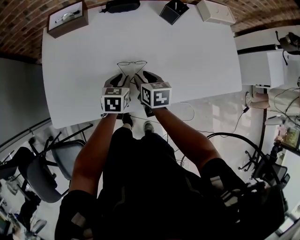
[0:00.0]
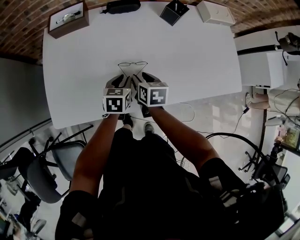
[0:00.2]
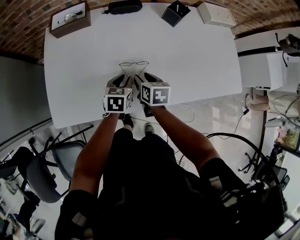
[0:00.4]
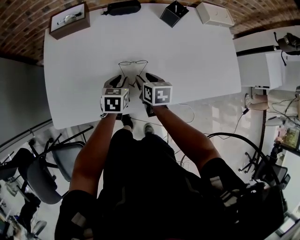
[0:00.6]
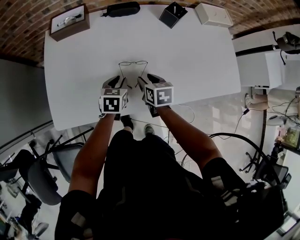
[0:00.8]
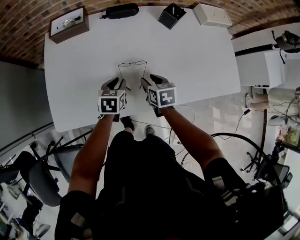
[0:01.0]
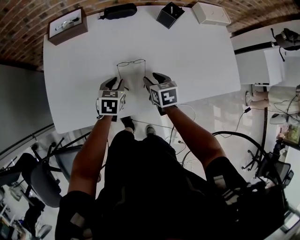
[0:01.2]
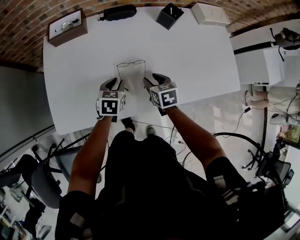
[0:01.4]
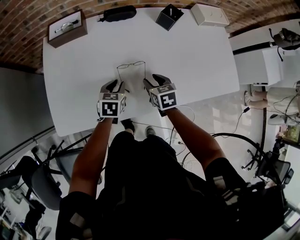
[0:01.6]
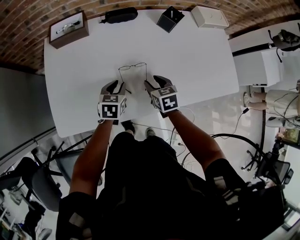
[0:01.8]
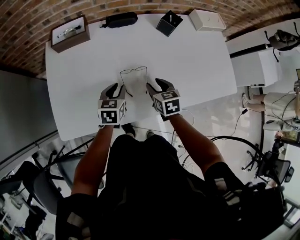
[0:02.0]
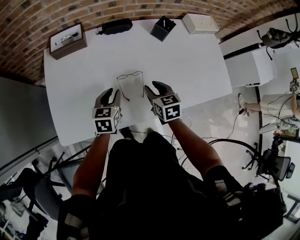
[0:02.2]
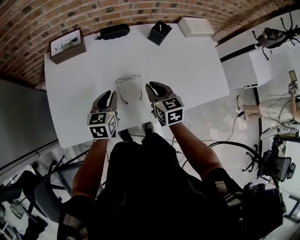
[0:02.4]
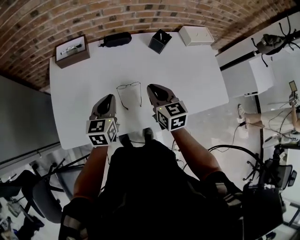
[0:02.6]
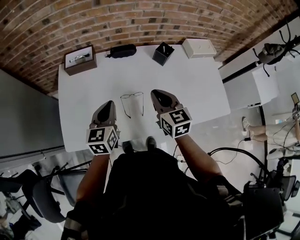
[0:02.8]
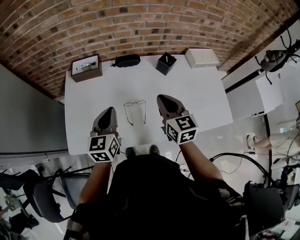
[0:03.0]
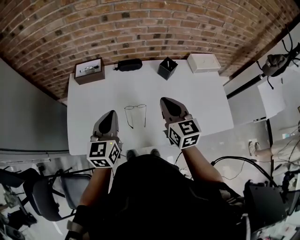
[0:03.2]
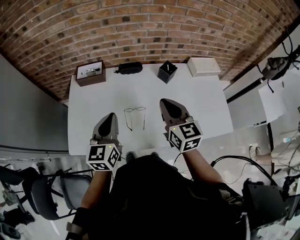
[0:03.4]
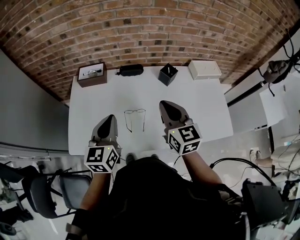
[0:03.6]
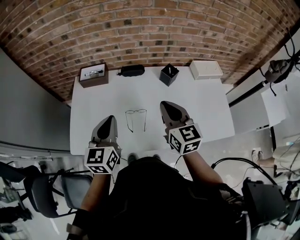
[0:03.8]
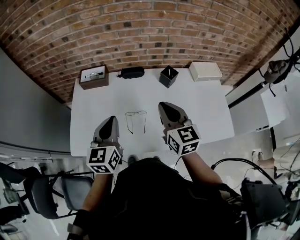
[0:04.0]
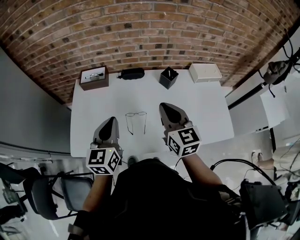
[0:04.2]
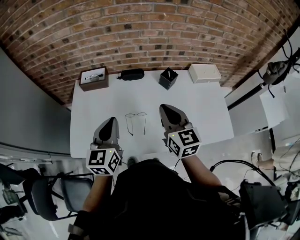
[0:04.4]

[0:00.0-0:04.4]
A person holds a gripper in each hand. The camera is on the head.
0:00.0 to 0:01.4: The grippers stay close to where they were, moving slightly.
0:01.4 to 0:03.0: The grippers both shift upward by about 25 cm. The right gripper angles its fingers upward, by about 30 degrees, and closes its fingers, while the left gripper tips its fingers upward by some 30 degrees, and closes its fingers.
0:03.0 to 0:04.4: Both grippers move upward, roughly 5 cm.

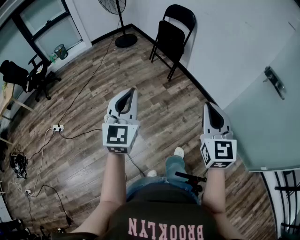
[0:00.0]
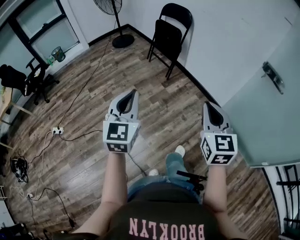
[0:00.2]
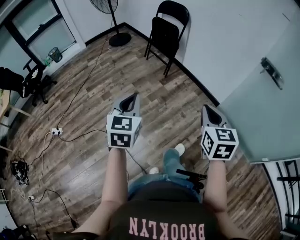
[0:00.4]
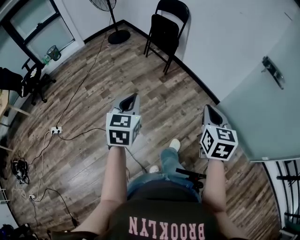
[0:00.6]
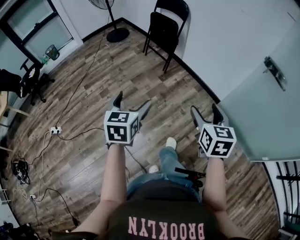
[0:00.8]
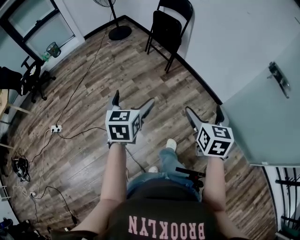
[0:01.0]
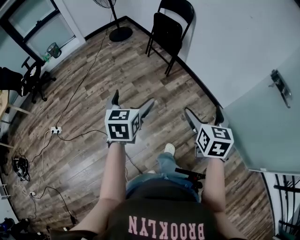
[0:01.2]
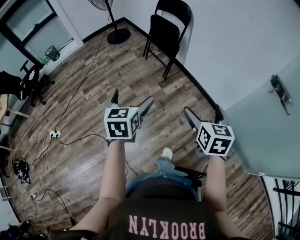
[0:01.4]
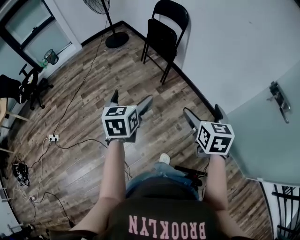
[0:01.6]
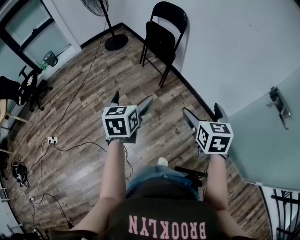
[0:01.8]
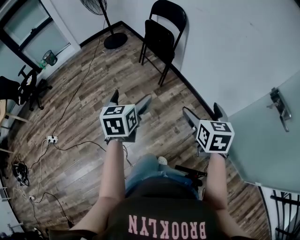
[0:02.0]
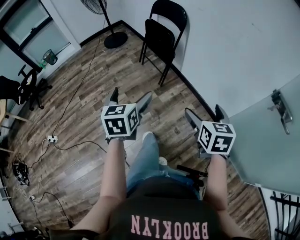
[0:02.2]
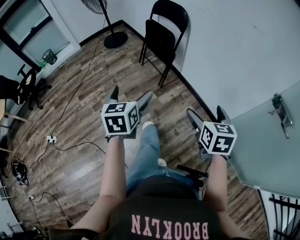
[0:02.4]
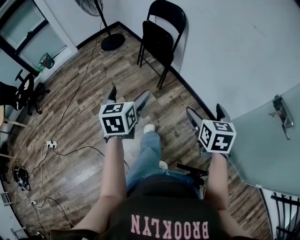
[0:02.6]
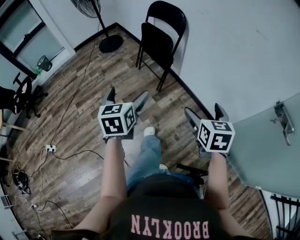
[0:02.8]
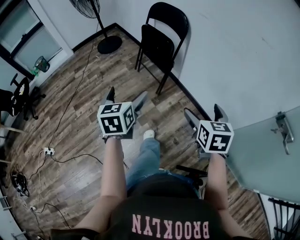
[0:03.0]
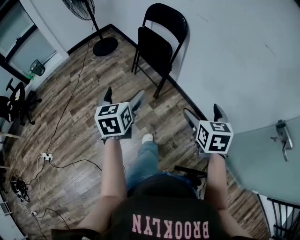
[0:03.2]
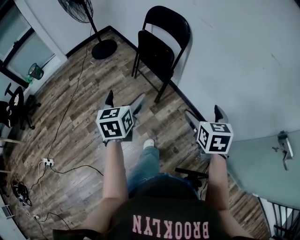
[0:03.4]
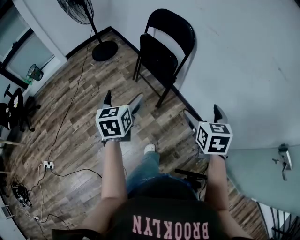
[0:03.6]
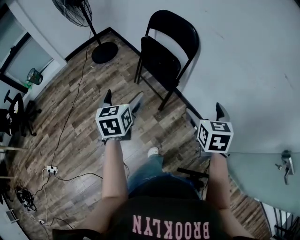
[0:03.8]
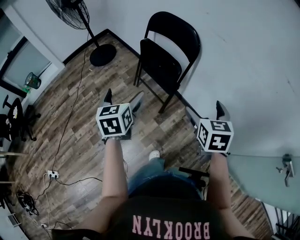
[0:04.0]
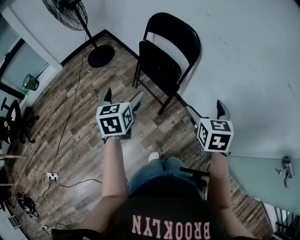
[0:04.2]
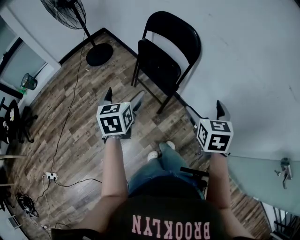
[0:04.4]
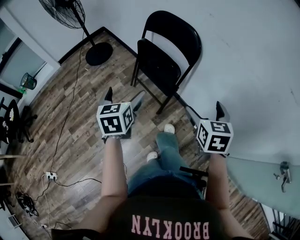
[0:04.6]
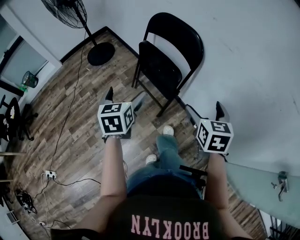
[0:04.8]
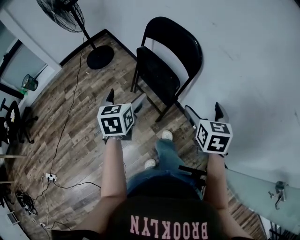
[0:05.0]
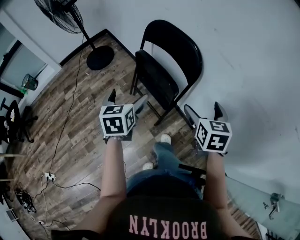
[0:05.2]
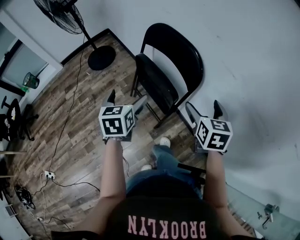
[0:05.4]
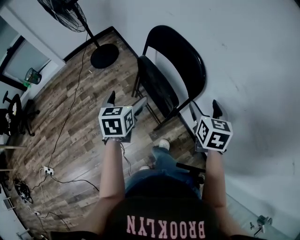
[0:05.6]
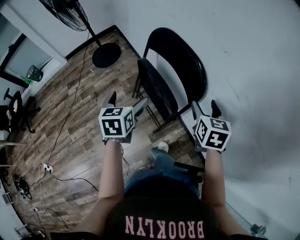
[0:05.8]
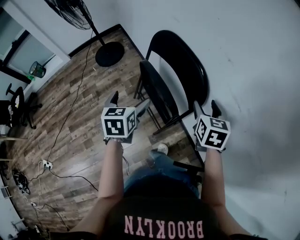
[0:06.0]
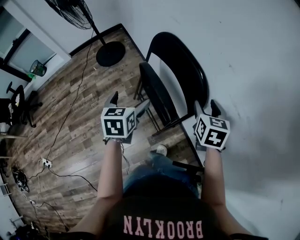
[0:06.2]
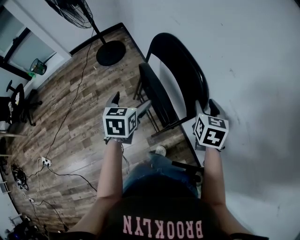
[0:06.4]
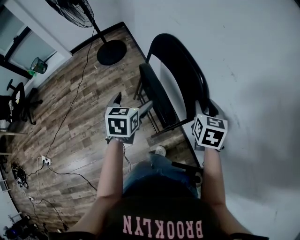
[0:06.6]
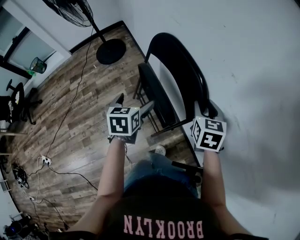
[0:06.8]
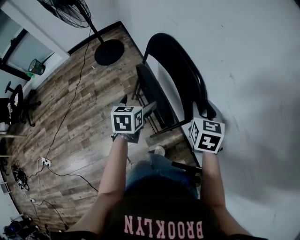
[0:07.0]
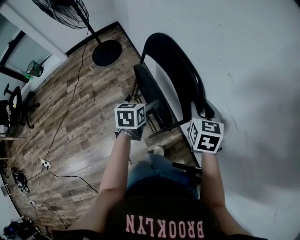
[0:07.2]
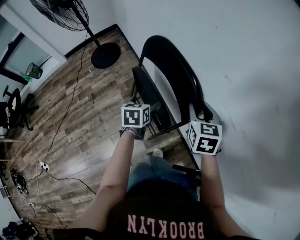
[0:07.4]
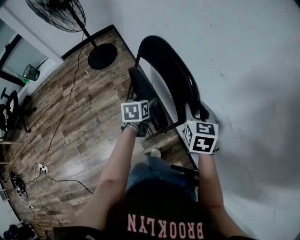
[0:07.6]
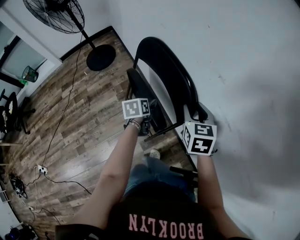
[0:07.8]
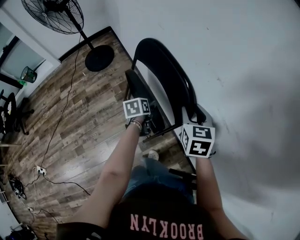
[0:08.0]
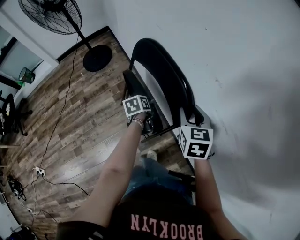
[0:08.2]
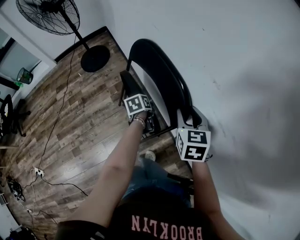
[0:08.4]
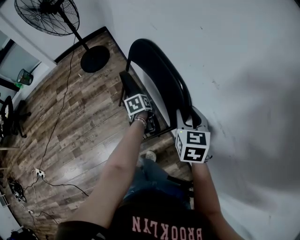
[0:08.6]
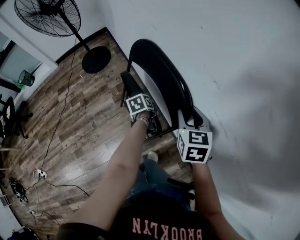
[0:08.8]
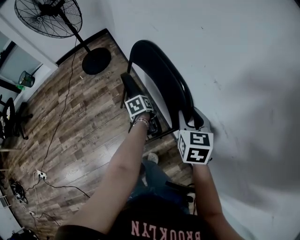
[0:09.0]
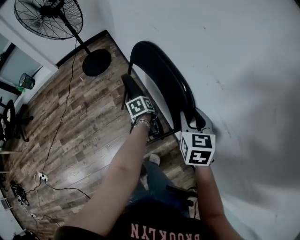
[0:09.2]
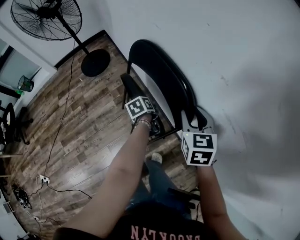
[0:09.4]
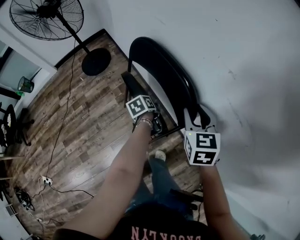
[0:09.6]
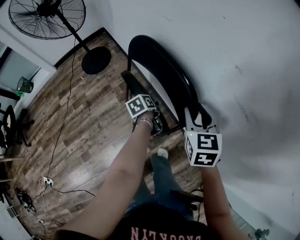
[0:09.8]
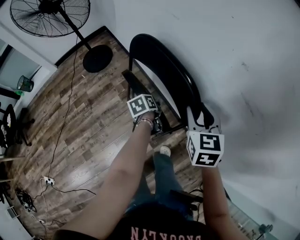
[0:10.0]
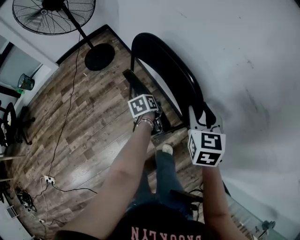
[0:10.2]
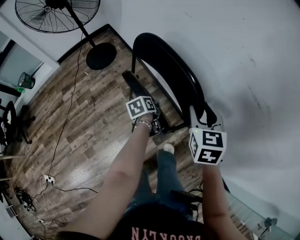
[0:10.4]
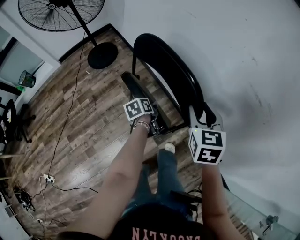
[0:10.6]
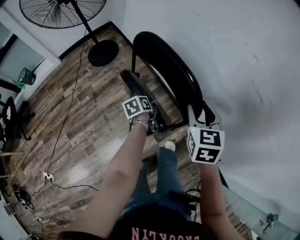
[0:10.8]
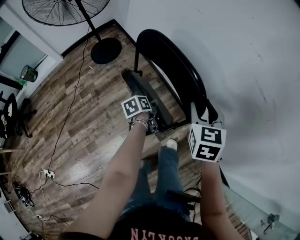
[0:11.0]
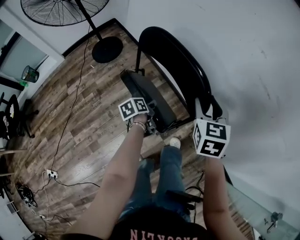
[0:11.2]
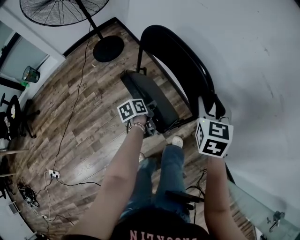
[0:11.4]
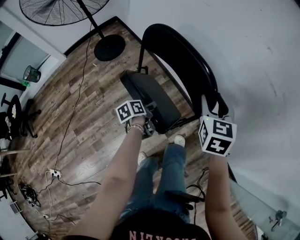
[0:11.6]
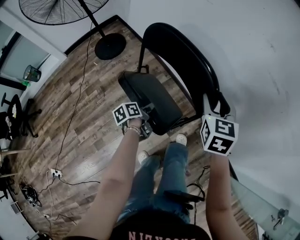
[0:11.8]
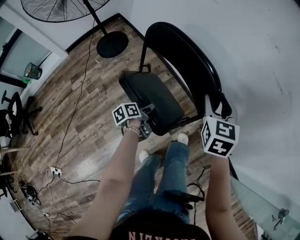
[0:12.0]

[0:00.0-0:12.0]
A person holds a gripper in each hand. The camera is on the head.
0:00.0 to 0:01.6: The right gripper goes roughly 25 cm forward and downward, turns by roughly 30 degrees, and opens its fingers, while the left gripper goes approximately 25 cm forward, swivels about 30 degrees, and opens.
0:01.6 to 0:03.0: Both grippers move forward, some 20 cm.
0:03.0 to 0:04.4: Both grippers travel together forward, some 30 cm.
0:04.4 to 0:06.0: The grippers both shift forward by approximately 30 cm. The right gripper closes up.
0:06.0 to 0:07.6: The right gripper moves forward, approximately 5 cm; the left gripper goes roughly 20 cm downward, forward and to the right, and closes up.
0:07.6 to 0:09.0: The left gripper is displaced downward by approximately 10 cm, swivels approximately 30 degrees, and closes.
0:09.0 to 0:10.4: Both grippers move backward and to the left, some 15 cm.
0:10.4 to 0:12.0: The left gripper heads backward and to the left, covering roughly 15 cm. The right gripper moves about 5 cm.

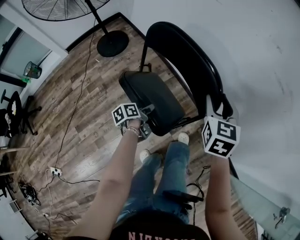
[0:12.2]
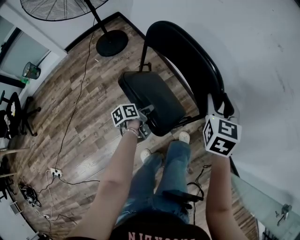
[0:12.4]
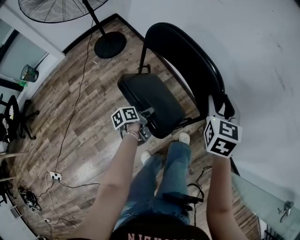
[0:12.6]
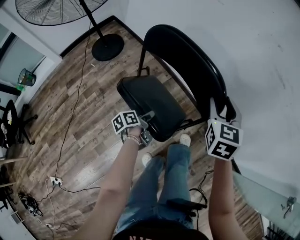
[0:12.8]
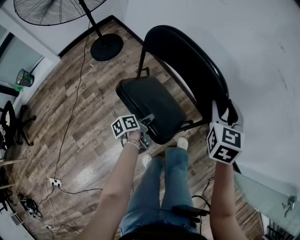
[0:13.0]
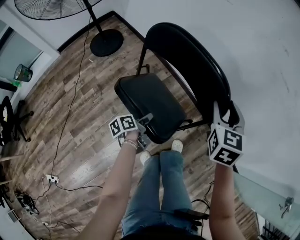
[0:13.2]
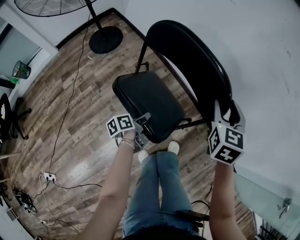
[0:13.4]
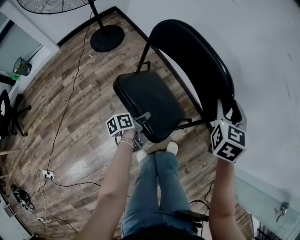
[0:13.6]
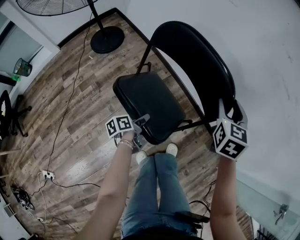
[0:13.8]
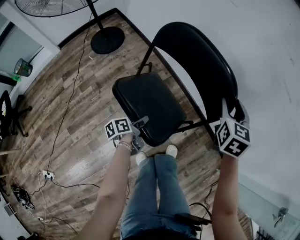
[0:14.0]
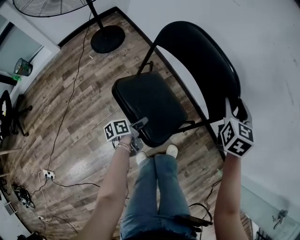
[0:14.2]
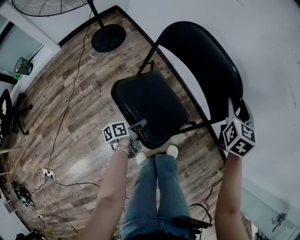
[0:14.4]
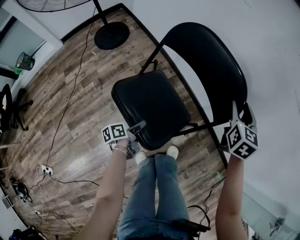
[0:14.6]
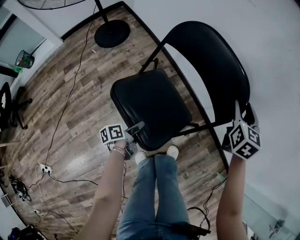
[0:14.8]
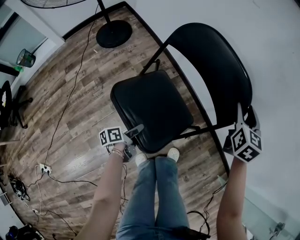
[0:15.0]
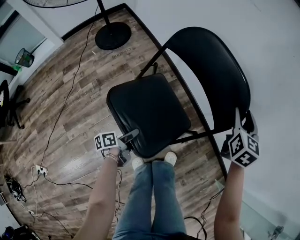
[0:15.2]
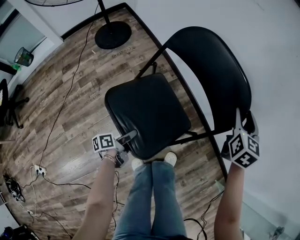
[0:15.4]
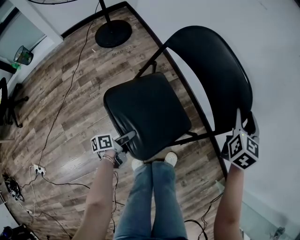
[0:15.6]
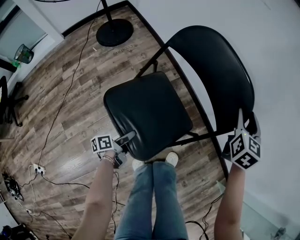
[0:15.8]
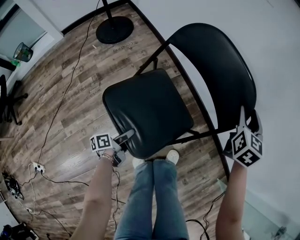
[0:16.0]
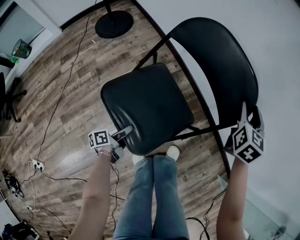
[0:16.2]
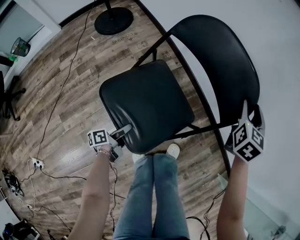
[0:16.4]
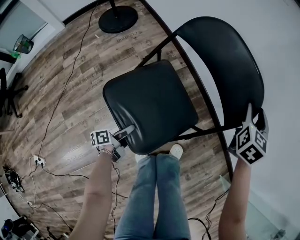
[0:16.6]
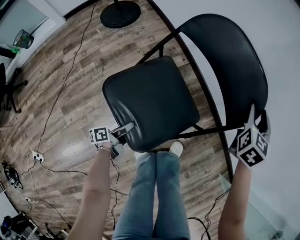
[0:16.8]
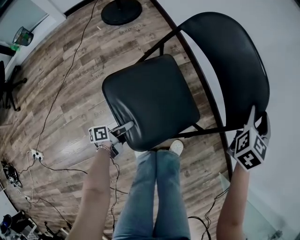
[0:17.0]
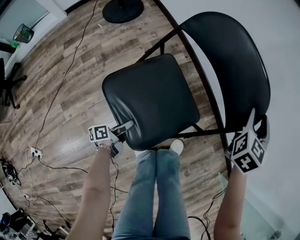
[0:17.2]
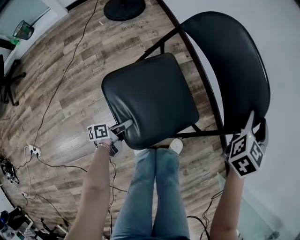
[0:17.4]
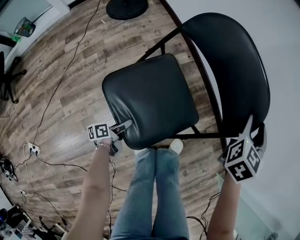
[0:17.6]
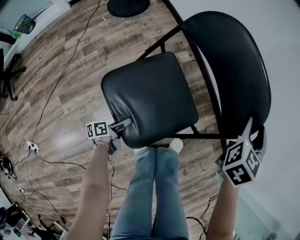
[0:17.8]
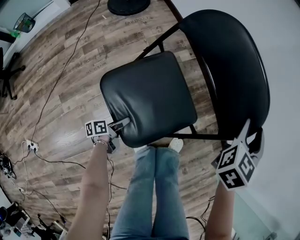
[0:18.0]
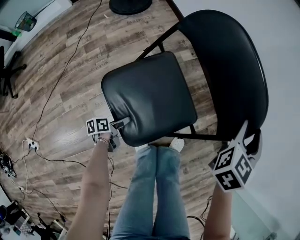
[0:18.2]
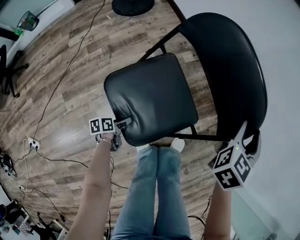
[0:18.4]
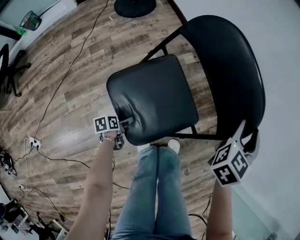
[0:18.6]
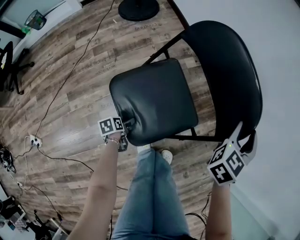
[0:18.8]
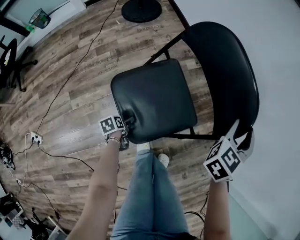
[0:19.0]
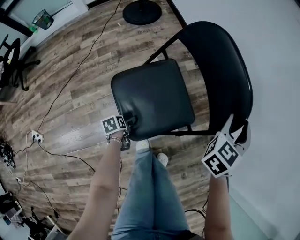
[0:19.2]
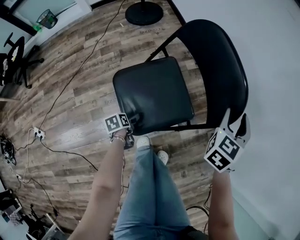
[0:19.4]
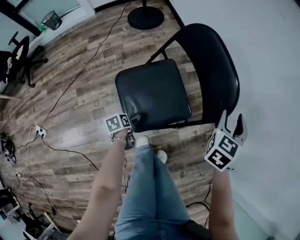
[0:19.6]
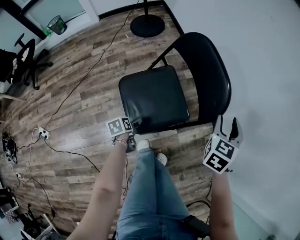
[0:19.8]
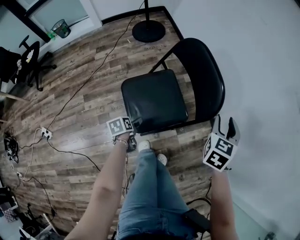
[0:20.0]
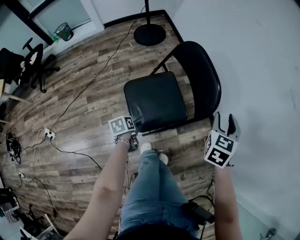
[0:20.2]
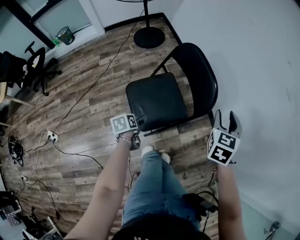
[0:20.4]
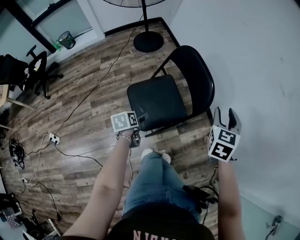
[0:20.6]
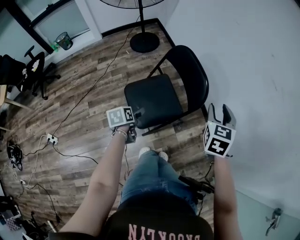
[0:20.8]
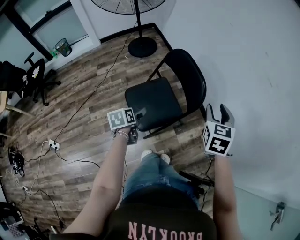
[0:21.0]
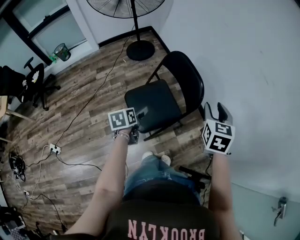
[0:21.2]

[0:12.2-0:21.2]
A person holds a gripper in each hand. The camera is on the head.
0:12.2 to 0:13.8: The left gripper changes place by approximately 5 cm.
0:13.8 to 0:15.2: The right gripper moves forward and downward, some 10 cm. Meanwhile the left gripper shifts approximately 10 cm downward.
0:15.2 to 0:16.6: The left gripper goes about 10 cm downward and backward; the right gripper heads downward, covering about 5 cm.
0:16.6 to 0:18.2: The left gripper travels backward and downward by some 10 cm. The right gripper heads backward, covering some 15 cm.
0:18.2 to 0:19.8: The left gripper shifts some 15 cm upward, and changes its angle by about 30 degrees, while the right gripper changes place by approximately 10 cm, and rotates approximately 20 degrees.
0:19.8 to 0:21.2: The right gripper shifts some 20 cm upward and backward. The left gripper heads upward, covering some 30 cm, and changes its angle by approximately 30 degrees.
